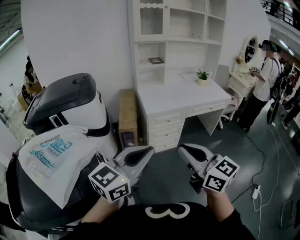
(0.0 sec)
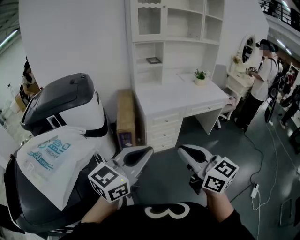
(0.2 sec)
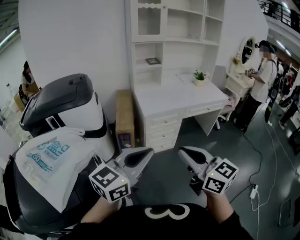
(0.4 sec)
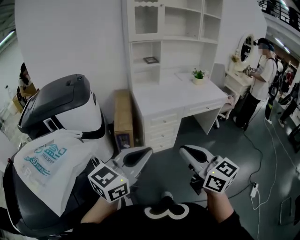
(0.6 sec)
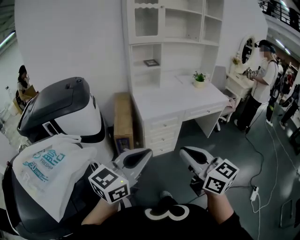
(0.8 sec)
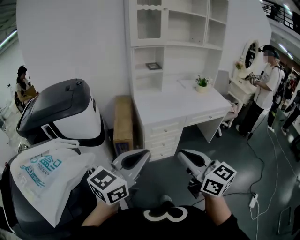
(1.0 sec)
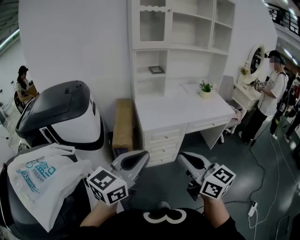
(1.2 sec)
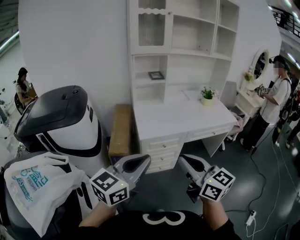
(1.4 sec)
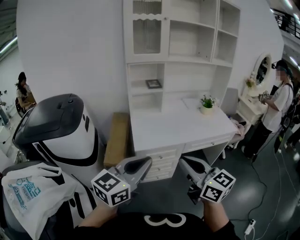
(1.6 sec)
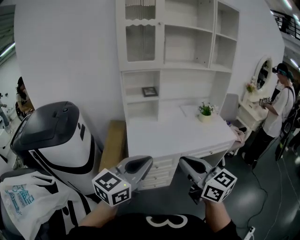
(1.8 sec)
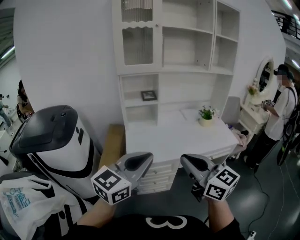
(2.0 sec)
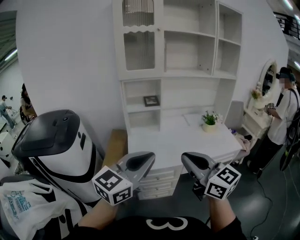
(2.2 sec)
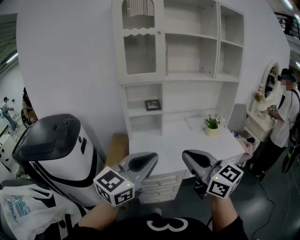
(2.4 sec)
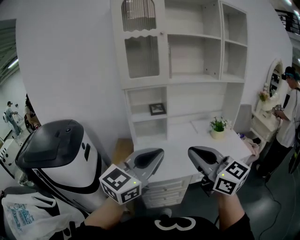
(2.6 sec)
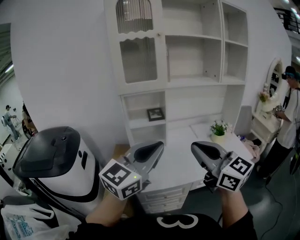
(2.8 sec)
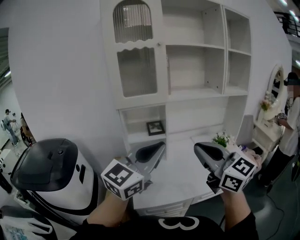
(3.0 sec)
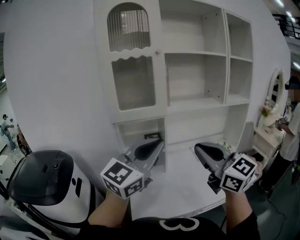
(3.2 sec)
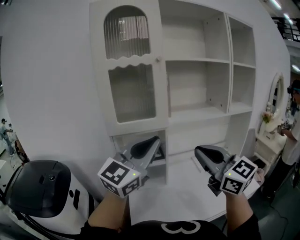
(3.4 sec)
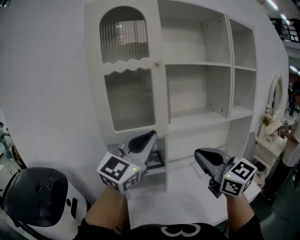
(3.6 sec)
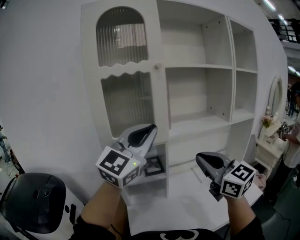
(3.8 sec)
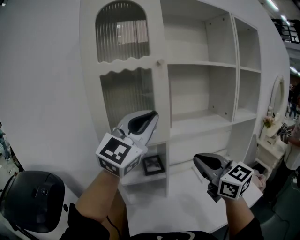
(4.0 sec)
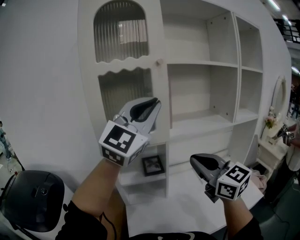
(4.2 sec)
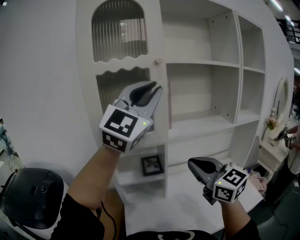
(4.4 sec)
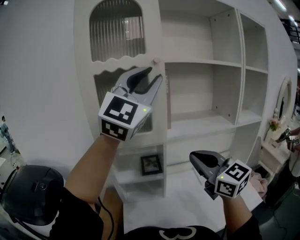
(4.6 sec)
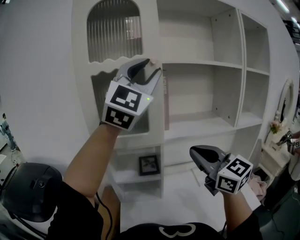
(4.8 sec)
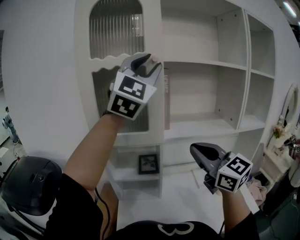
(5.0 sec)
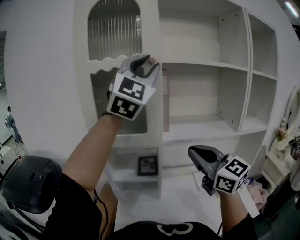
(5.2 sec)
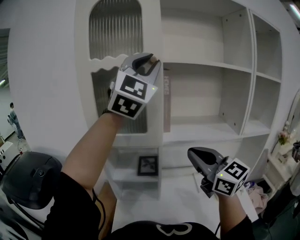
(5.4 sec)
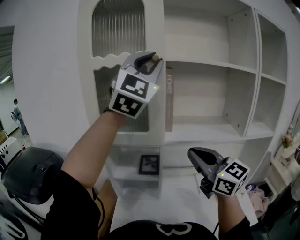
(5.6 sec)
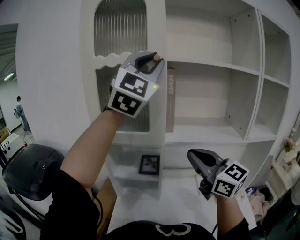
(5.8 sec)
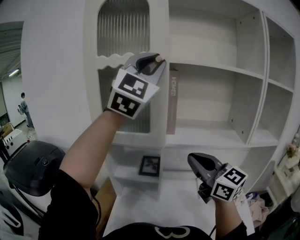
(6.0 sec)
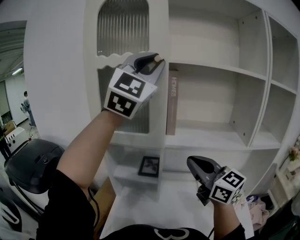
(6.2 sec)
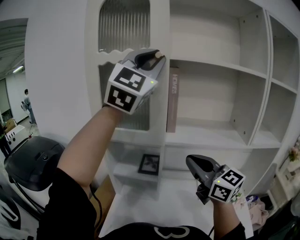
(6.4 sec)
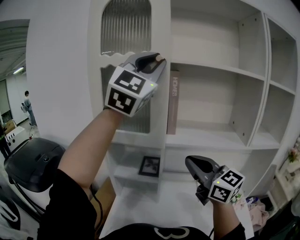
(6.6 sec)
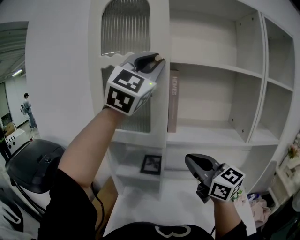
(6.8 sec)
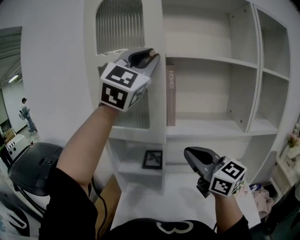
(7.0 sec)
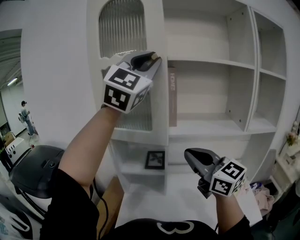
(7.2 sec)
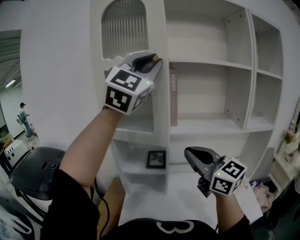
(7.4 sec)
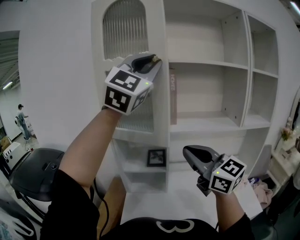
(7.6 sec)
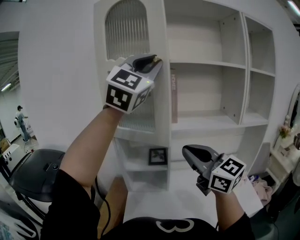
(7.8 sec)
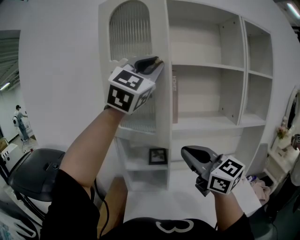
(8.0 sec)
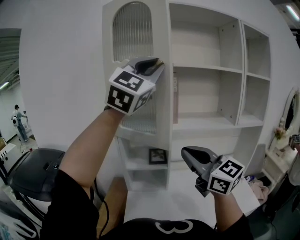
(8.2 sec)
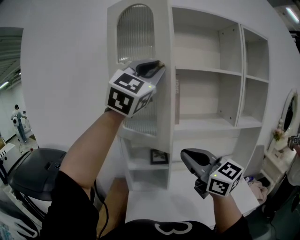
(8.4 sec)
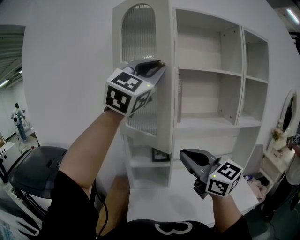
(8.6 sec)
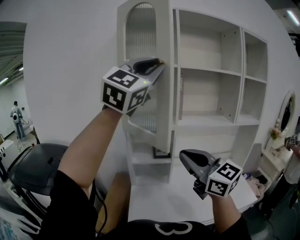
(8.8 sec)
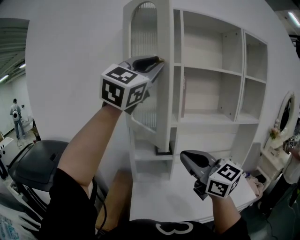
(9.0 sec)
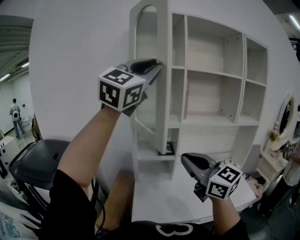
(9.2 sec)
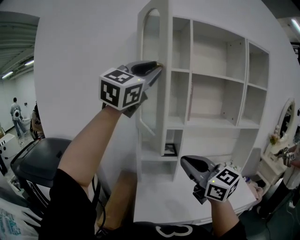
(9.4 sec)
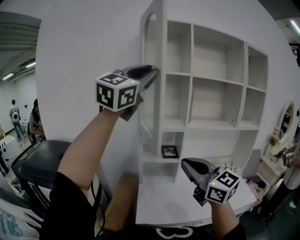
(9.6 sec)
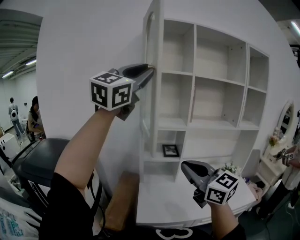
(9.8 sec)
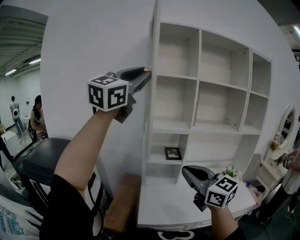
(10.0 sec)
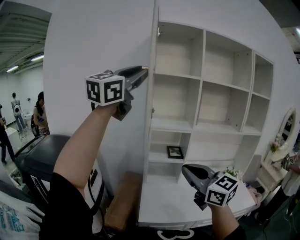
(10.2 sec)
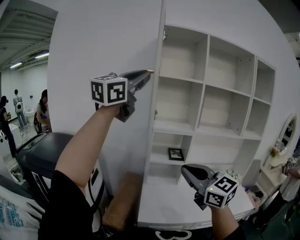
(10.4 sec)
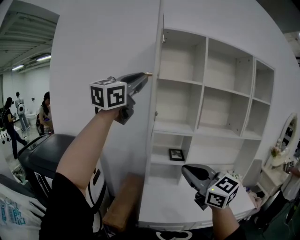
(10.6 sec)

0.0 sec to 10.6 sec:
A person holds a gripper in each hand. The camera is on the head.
0.0 sec to 1.6 sec: Both grippers travel together forward, about 25 cm.
1.6 sec to 3.0 sec: Both grippers move forward and upward, approximately 35 cm. The left gripper rotates roughly 20 degrees.
3.0 sec to 4.6 sec: The left gripper travels forward and upward by some 40 cm, rotates roughly 40 degrees, and opens up. The right gripper heads forward, covering about 25 cm.
4.6 sec to 6.0 sec: The two grippers go roughly 5 cm forward.
6.0 sec to 7.6 sec: The right gripper is displaced backward and to the left by roughly 10 cm; the left gripper moves backward, some 10 cm.
7.6 sec to 9.0 sec: The two grippers go approximately 15 cm backward and to the left.
9.0 sec to 10.6 sec: The left gripper shifts about 20 cm to the left, and rotates roughly 20 degrees. Meanwhile the right gripper heads backward and to the left, covering about 15 cm.

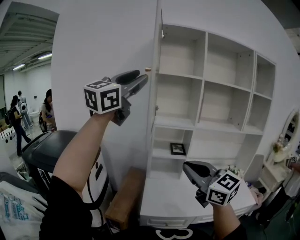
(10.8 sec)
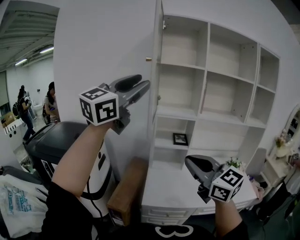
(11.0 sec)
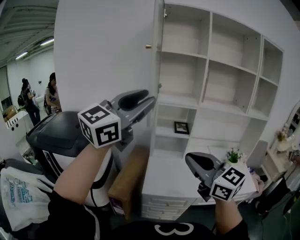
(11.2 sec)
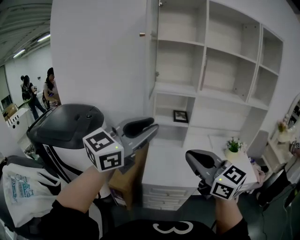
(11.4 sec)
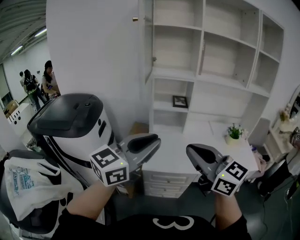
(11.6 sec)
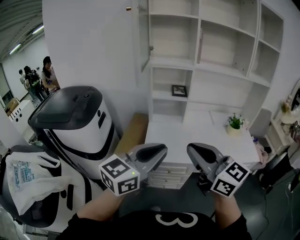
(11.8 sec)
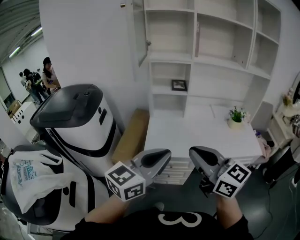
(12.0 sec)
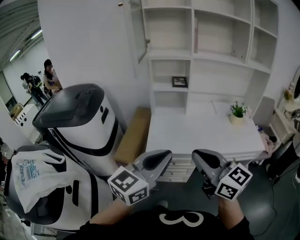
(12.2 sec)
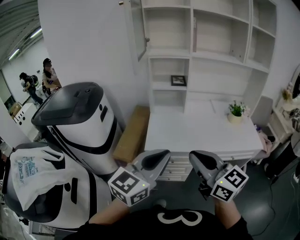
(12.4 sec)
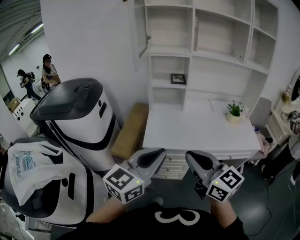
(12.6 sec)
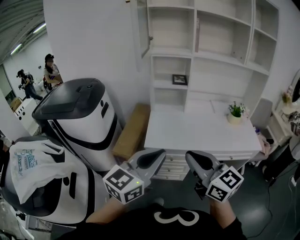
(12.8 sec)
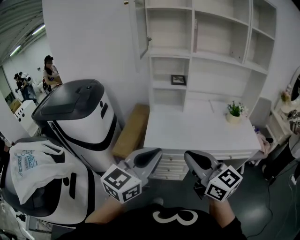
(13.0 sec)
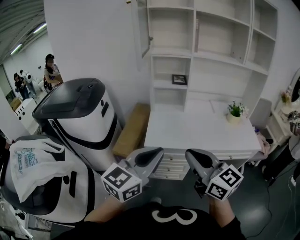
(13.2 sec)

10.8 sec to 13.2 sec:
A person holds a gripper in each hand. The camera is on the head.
10.8 sec to 12.0 sec: The right gripper shifts some 20 cm backward, downward and to the right. The left gripper heads downward, backward and to the right, covering some 50 cm, turns by approximately 40 degrees, and closes its fingers.
12.0 sec to 13.2 sec: The grippers both shift backward by some 5 cm.

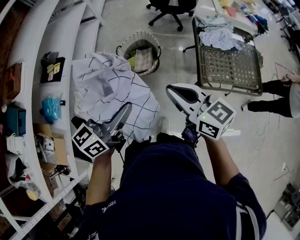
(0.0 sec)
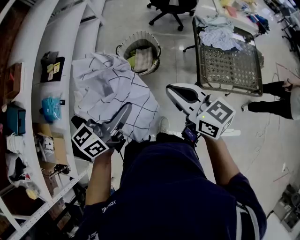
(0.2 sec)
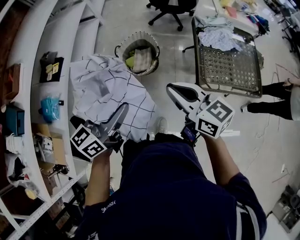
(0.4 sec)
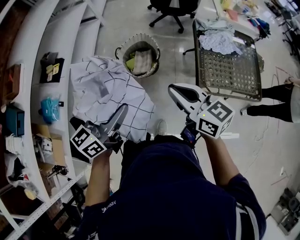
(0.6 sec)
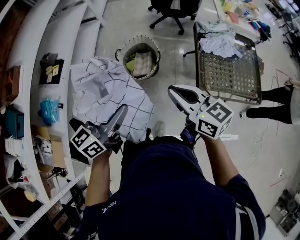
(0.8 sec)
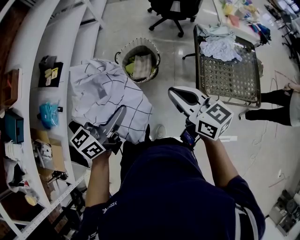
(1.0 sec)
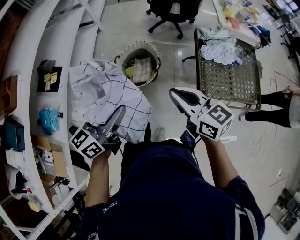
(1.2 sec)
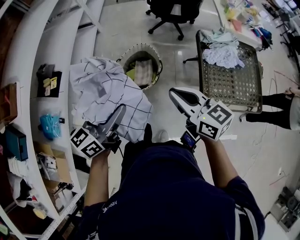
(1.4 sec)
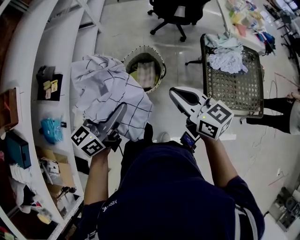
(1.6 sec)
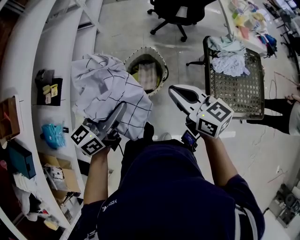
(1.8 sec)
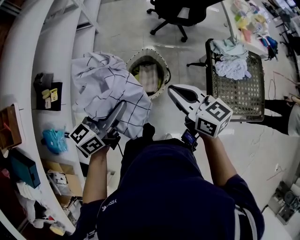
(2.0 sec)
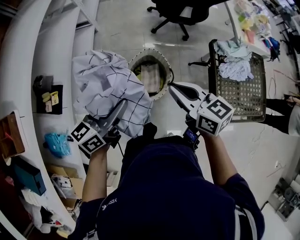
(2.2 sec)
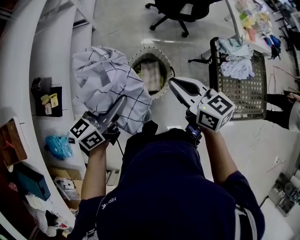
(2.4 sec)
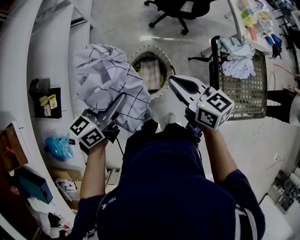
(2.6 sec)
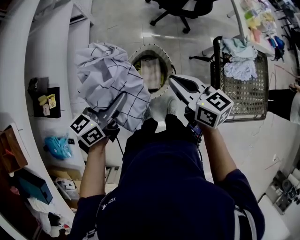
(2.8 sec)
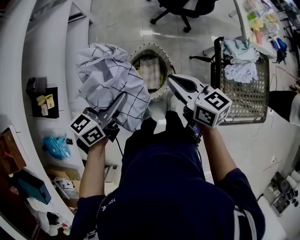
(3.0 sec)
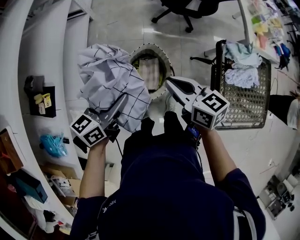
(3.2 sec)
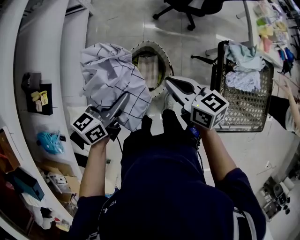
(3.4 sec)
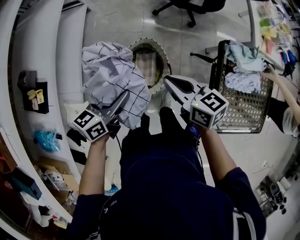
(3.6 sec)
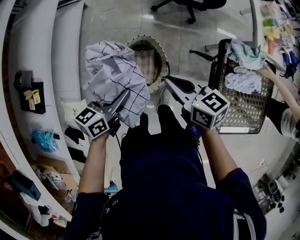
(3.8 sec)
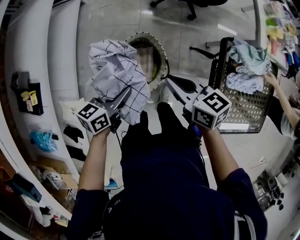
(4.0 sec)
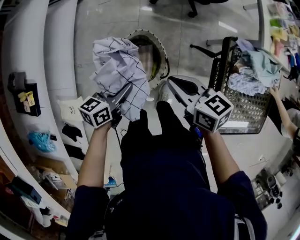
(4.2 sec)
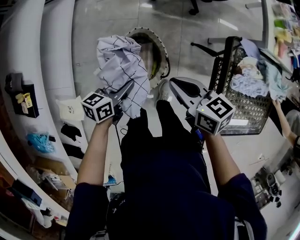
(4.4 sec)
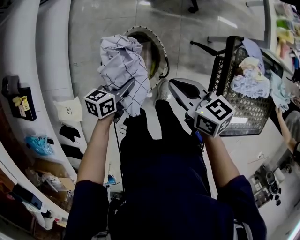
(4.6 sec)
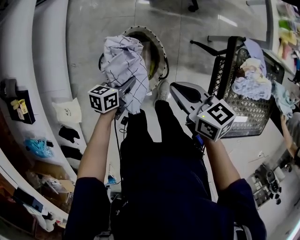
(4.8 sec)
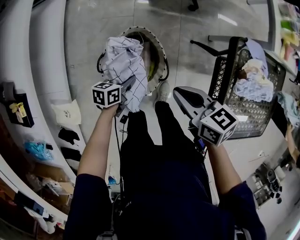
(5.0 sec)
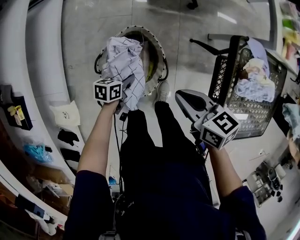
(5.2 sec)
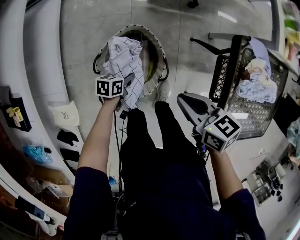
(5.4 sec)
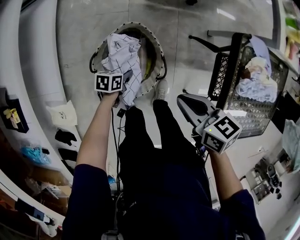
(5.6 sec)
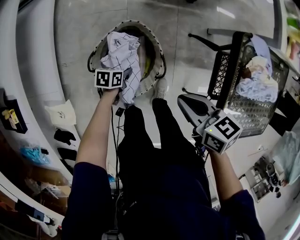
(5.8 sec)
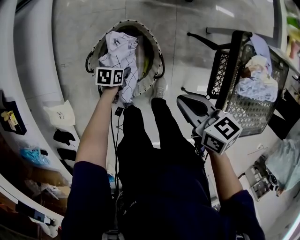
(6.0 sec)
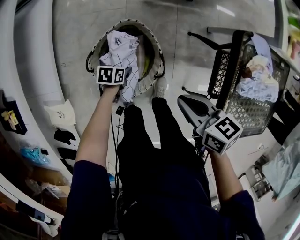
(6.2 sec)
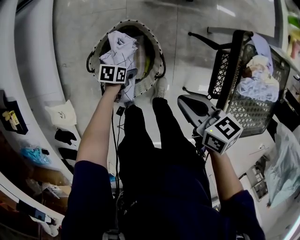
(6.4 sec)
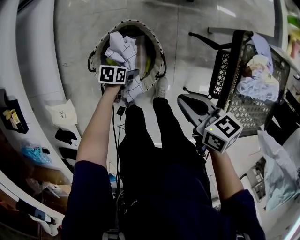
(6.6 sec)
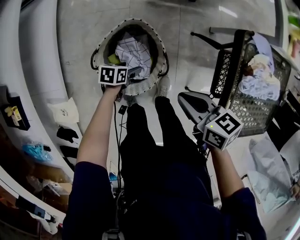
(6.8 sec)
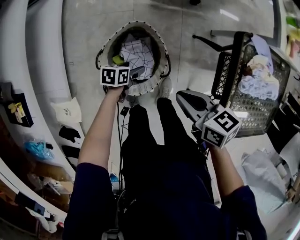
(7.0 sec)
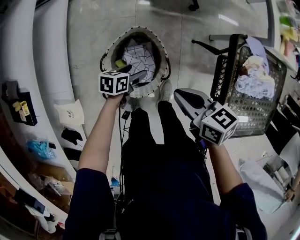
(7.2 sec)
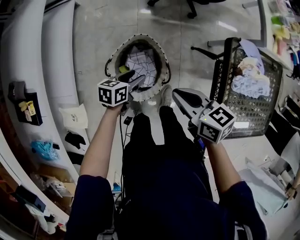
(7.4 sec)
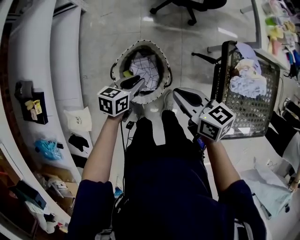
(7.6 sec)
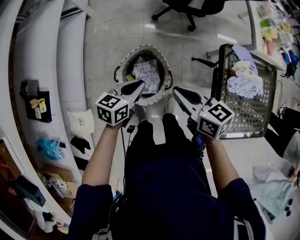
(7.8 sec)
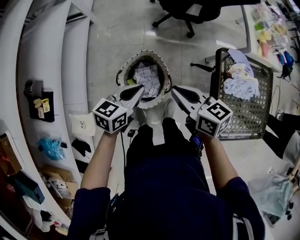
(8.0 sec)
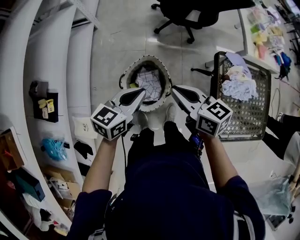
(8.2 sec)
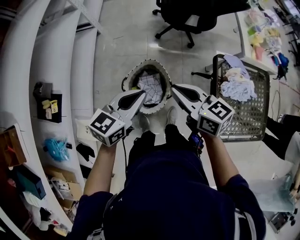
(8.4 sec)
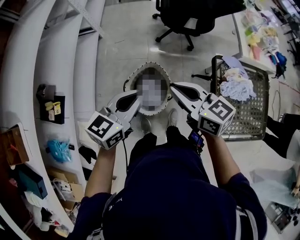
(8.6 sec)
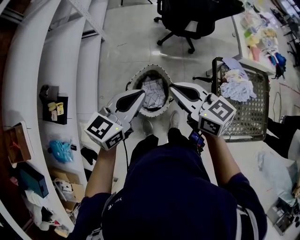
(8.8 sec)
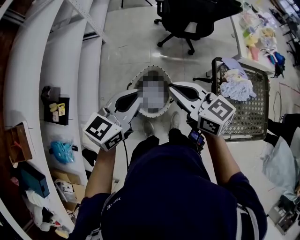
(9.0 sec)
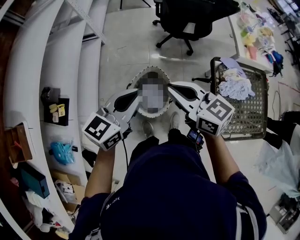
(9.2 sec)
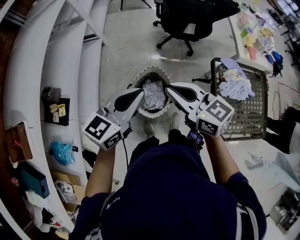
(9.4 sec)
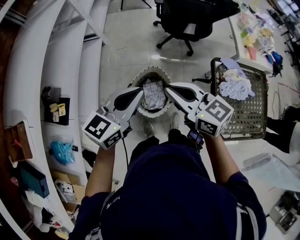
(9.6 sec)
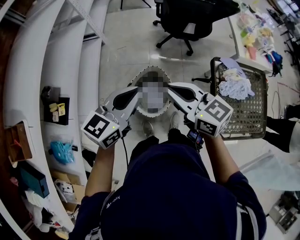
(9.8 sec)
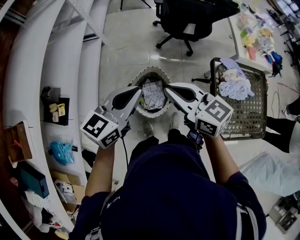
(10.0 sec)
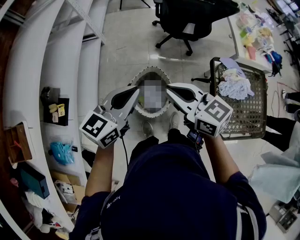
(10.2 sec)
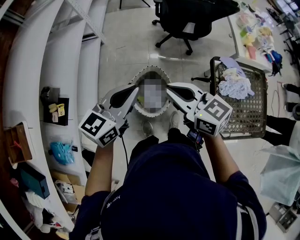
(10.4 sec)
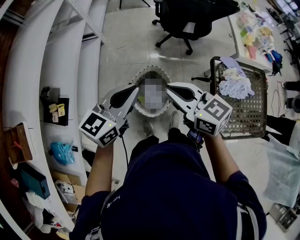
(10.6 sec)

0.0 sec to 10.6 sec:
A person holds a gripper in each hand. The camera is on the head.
0.0 sec to 1.6 sec: Both grippers travel together forward, some 20 cm.
1.6 sec to 3.0 sec: The right gripper shifts some 20 cm forward and to the left, while the left gripper heads forward, downward and to the left, covering approximately 25 cm.
3.0 sec to 4.6 sec: The right gripper goes roughly 15 cm downward. Meanwhile the left gripper goes about 30 cm downward, and changes its angle by roughly 20 degrees.
4.6 sec to 6.0 sec: The left gripper heads downward, covering approximately 25 cm, and rotates some 30 degrees, while the right gripper shifts about 5 cm downward.
6.0 sec to 7.6 sec: The right gripper travels upward by some 10 cm. Meanwhile the left gripper is displaced upward by some 30 cm, rotates approximately 30 degrees, and opens and closes again.
7.6 sec to 9.0 sec: The left gripper heads upward, covering approximately 35 cm, and changes its angle by approximately 40 degrees, while the right gripper shifts approximately 20 cm upward, and rotates about 30 degrees.
9.0 sec to 10.6 sec: The grippers move only a little.
